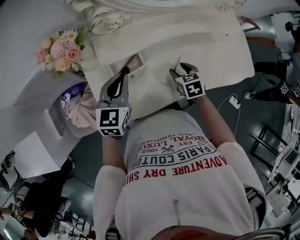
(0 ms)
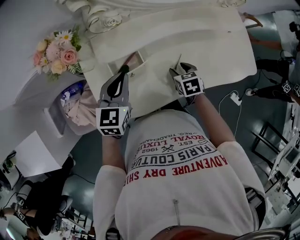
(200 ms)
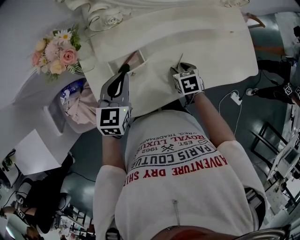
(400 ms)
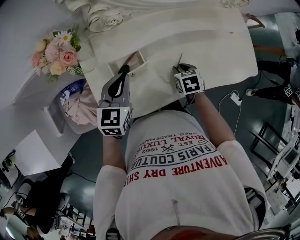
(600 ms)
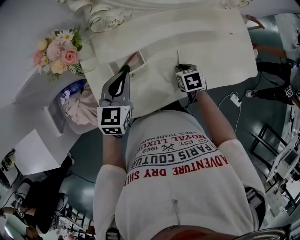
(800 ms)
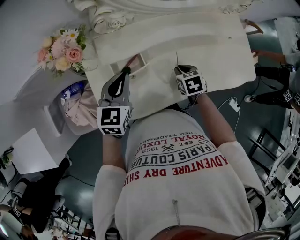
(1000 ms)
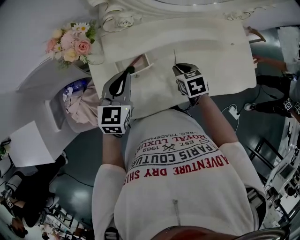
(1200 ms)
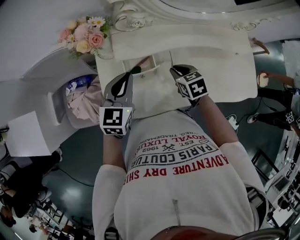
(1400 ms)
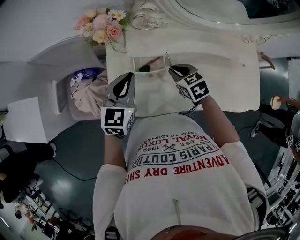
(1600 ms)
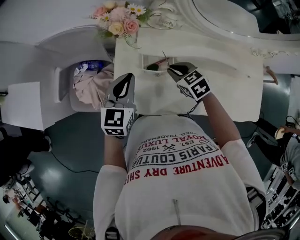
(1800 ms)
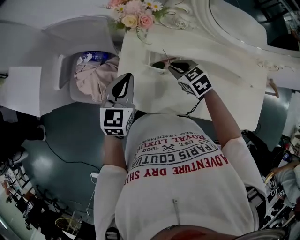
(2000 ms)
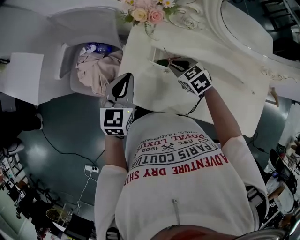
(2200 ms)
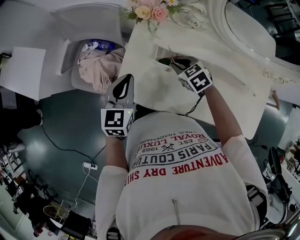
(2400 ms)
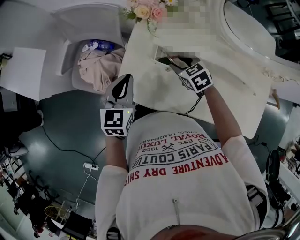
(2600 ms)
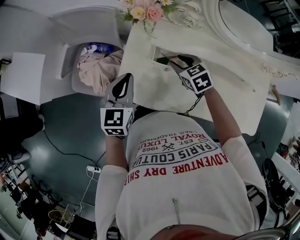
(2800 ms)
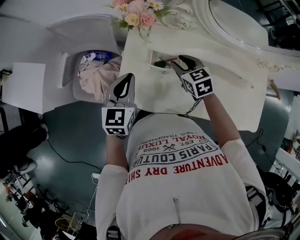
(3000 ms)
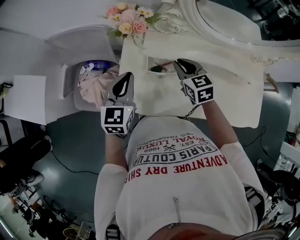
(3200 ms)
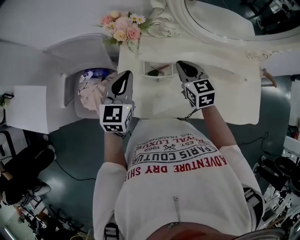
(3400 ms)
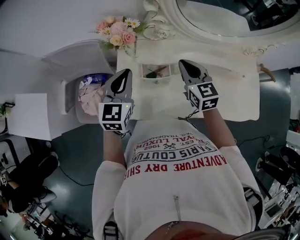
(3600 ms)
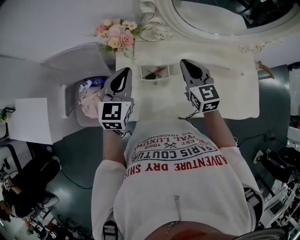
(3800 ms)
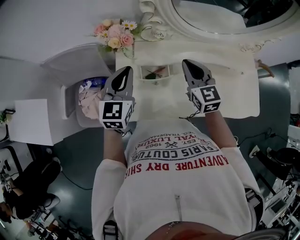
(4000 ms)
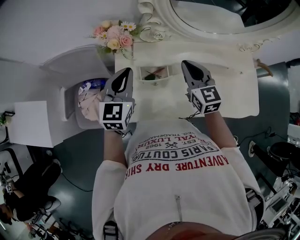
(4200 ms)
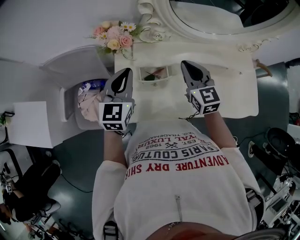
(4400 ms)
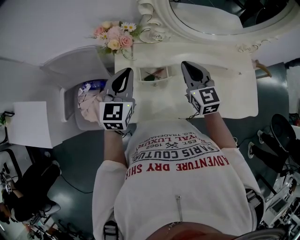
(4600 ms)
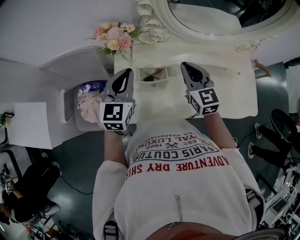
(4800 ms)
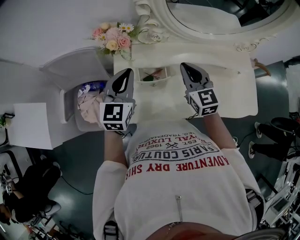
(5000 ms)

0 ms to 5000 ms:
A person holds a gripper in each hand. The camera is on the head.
0 ms to 1600 ms: The left gripper changes place by about 5 cm. Meanwhile the right gripper travels to the left and upward by approximately 15 cm, turns by some 30 degrees, and closes its fingers.
1600 ms to 3400 ms: The right gripper travels upward by some 10 cm, and turns by approximately 20 degrees.
3400 ms to 5000 ms: The right gripper heads upward, covering some 5 cm.

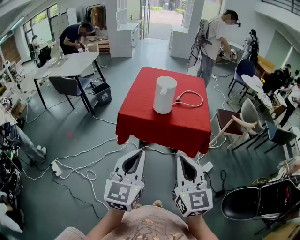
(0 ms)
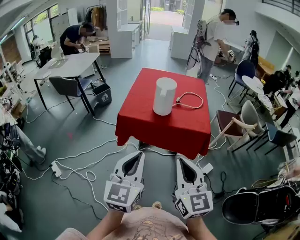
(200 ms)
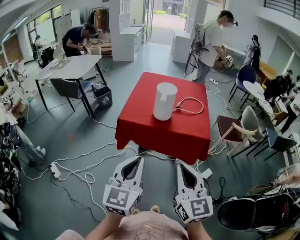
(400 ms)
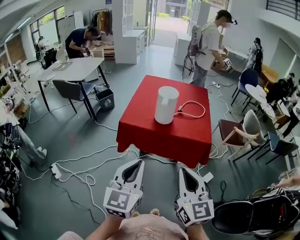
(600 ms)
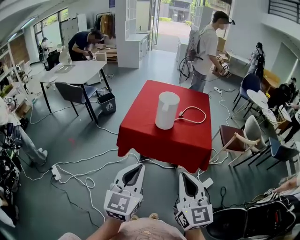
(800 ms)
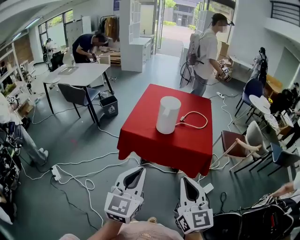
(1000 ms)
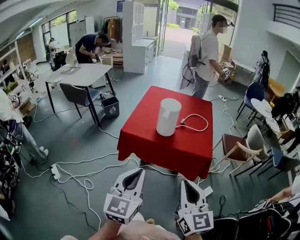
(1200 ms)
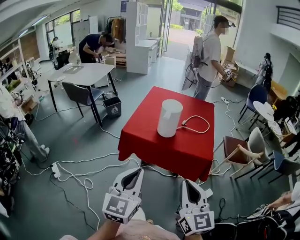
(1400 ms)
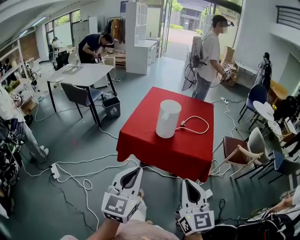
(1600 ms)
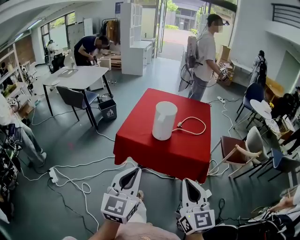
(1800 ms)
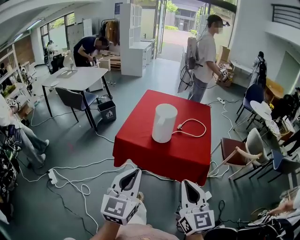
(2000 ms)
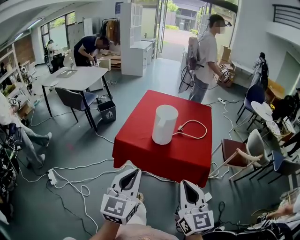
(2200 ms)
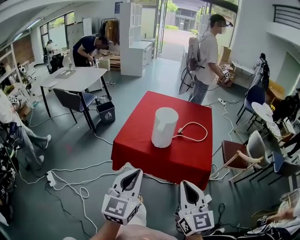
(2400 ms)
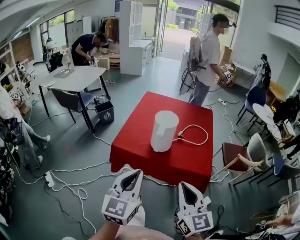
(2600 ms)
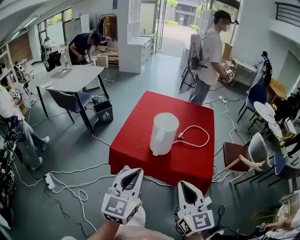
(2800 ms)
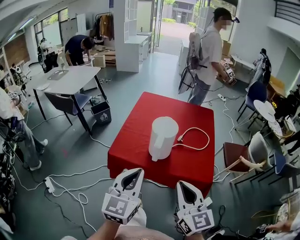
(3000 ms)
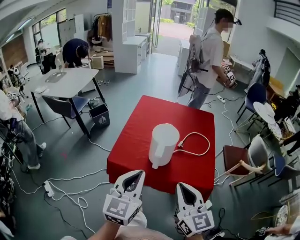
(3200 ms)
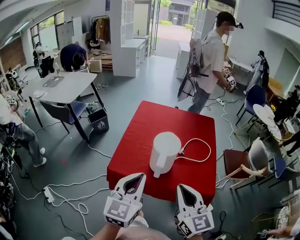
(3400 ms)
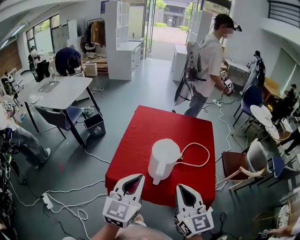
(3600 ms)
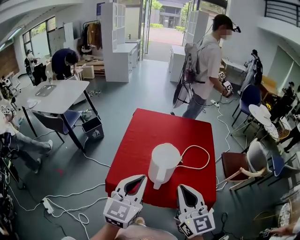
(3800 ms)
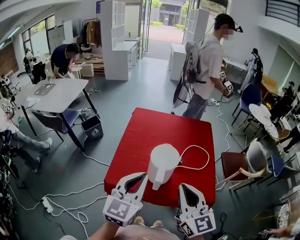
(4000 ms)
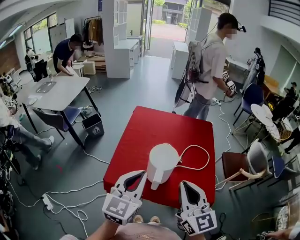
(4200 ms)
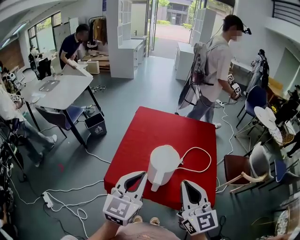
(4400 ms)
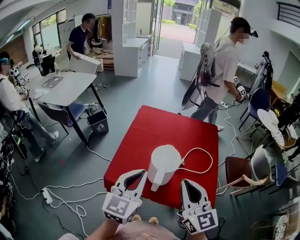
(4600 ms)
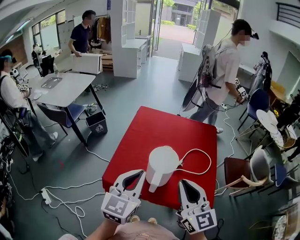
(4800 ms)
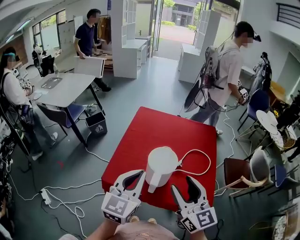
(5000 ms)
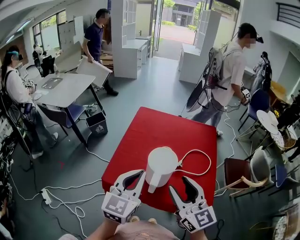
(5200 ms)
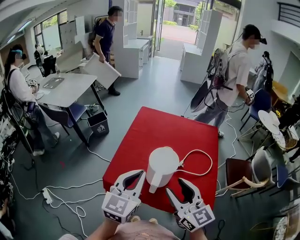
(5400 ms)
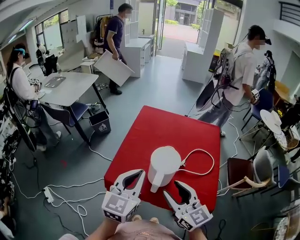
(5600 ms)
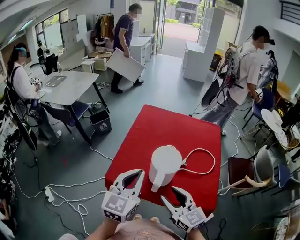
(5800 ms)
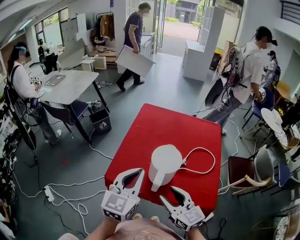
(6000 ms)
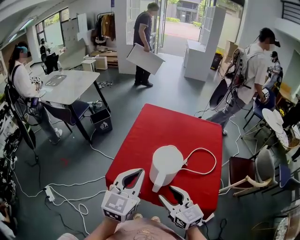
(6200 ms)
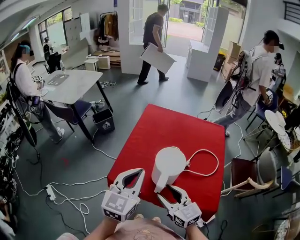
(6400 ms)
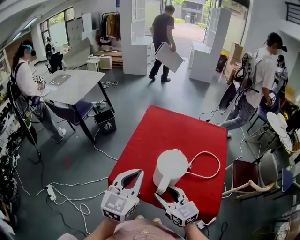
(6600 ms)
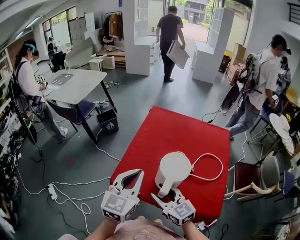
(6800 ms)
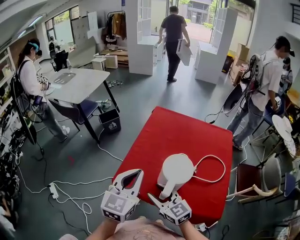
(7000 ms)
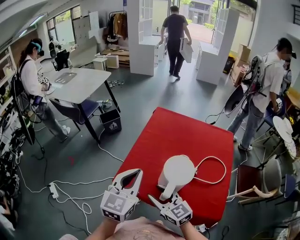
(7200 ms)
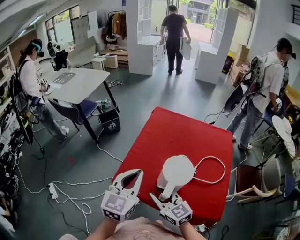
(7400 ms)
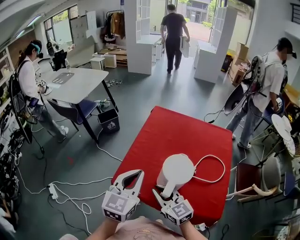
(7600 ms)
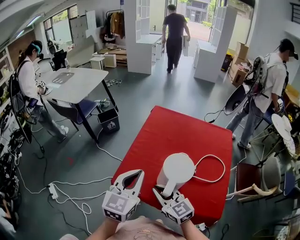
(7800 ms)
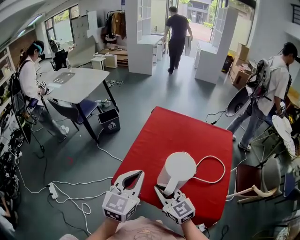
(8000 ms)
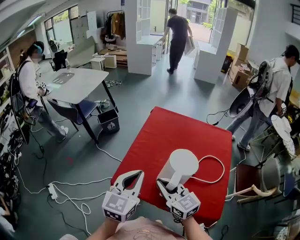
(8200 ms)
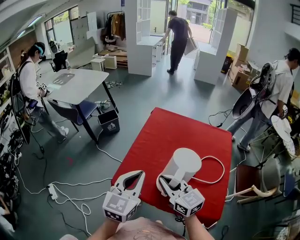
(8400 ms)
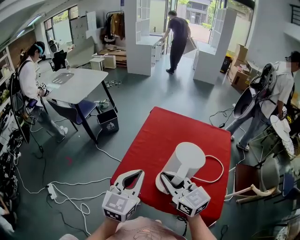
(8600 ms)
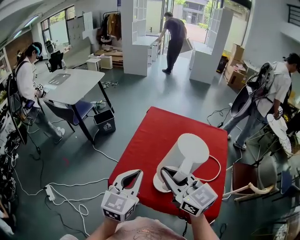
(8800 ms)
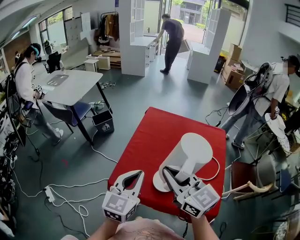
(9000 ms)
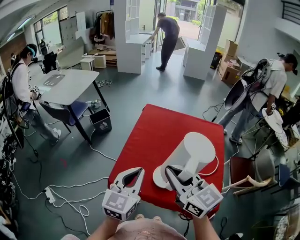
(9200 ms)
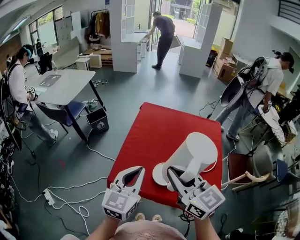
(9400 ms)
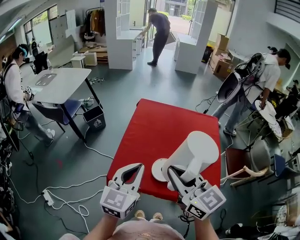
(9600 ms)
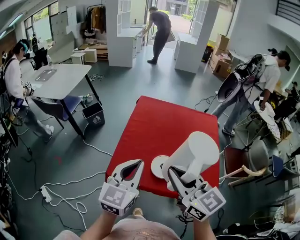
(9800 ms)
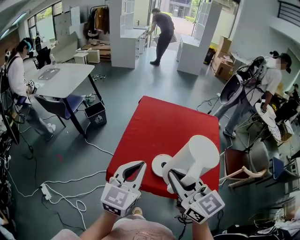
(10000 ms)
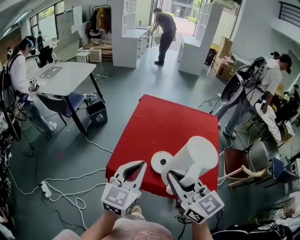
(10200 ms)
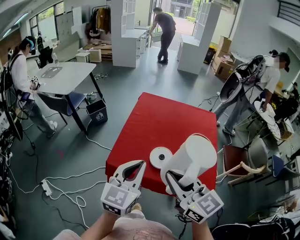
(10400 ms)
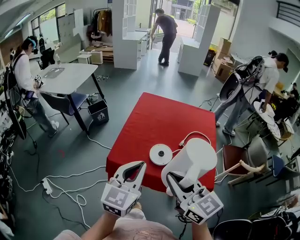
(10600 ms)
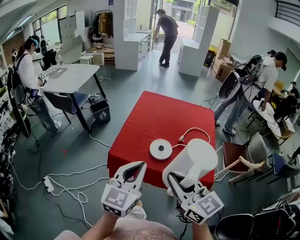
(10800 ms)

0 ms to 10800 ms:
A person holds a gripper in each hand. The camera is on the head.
0 ms to 1600 ms: The left gripper shifts by approximately 5 cm; the right gripper is displaced to the right by roughly 5 cm.
1600 ms to 3000 ms: Both grippers travel together forward, roughly 20 cm.
3000 ms to 4600 ms: Both grippers travel together forward, about 15 cm.
4600 ms to 6200 ms: The right gripper heads downward and to the left, covering roughly 15 cm, turns by approximately 30 degrees, and opens.
6200 ms to 7800 ms: The left gripper changes place by roughly 5 cm; the right gripper heads forward and to the left, covering some 10 cm, and closes.
7800 ms to 9200 ms: The right gripper heads upward, covering roughly 20 cm.
9200 ms to 10800 ms: Both grippers travel together backward, roughly 20 cm.

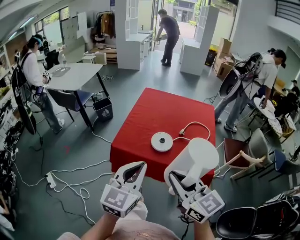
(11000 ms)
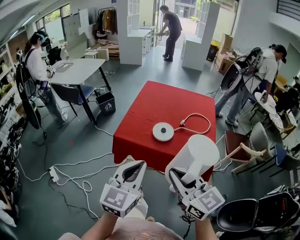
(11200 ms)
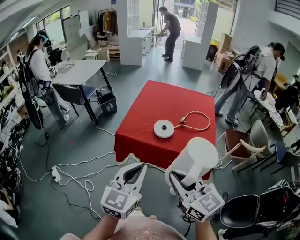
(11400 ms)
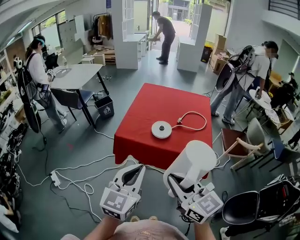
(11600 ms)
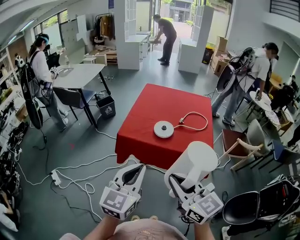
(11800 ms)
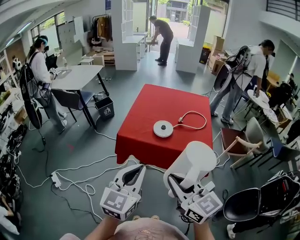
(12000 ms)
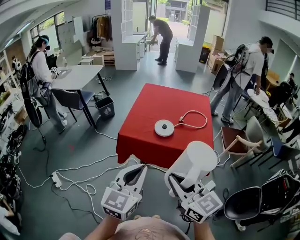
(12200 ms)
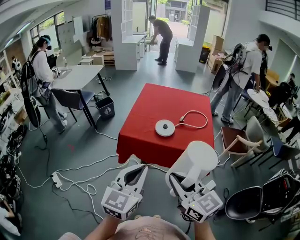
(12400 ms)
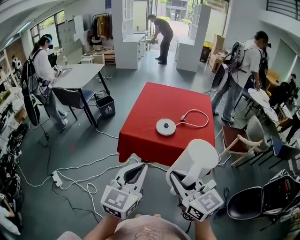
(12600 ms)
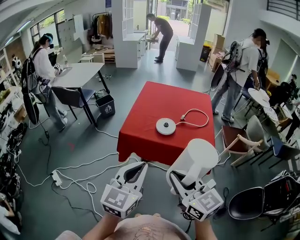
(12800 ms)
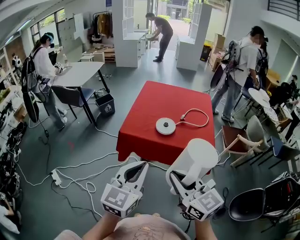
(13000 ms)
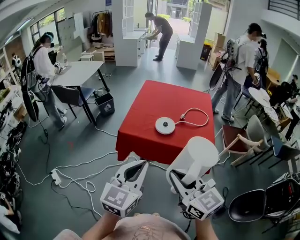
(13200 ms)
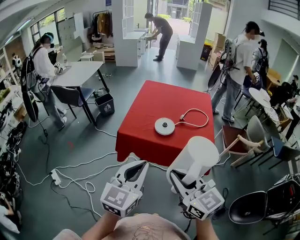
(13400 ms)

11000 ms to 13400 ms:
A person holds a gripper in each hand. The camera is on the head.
11000 ms to 12200 ms: The two grippers go roughly 15 cm backward.
12200 ms to 13400 ms: The grippers make only small movements.

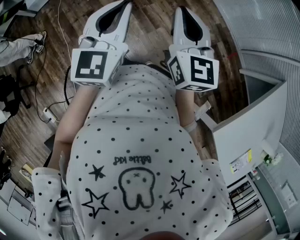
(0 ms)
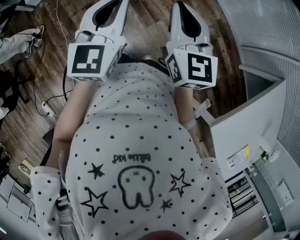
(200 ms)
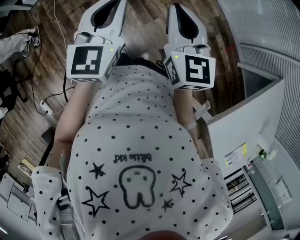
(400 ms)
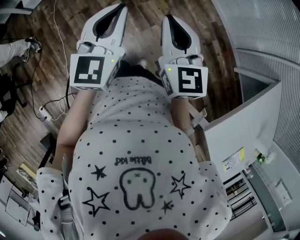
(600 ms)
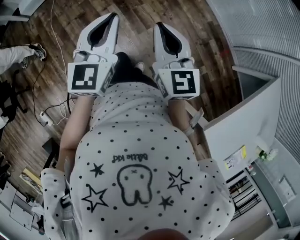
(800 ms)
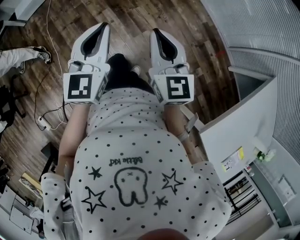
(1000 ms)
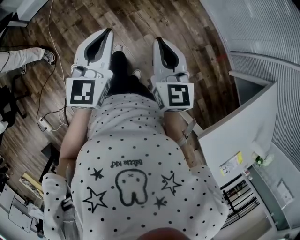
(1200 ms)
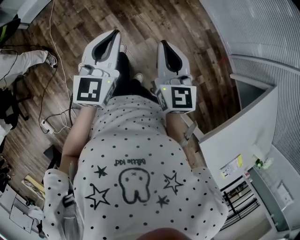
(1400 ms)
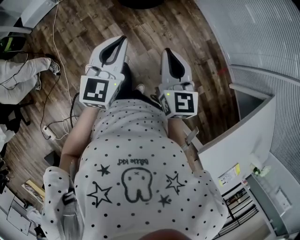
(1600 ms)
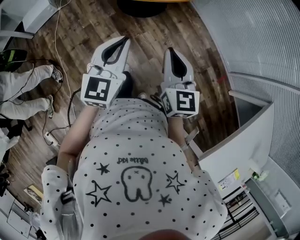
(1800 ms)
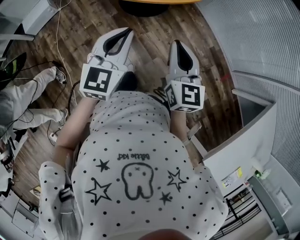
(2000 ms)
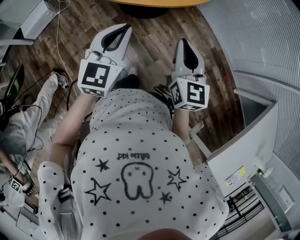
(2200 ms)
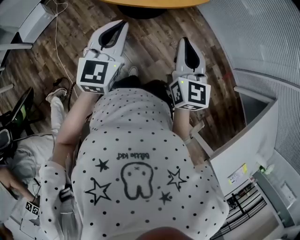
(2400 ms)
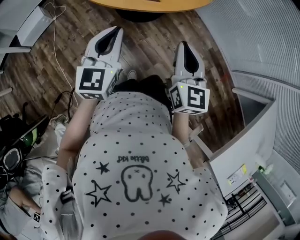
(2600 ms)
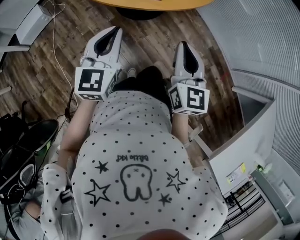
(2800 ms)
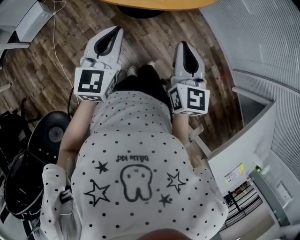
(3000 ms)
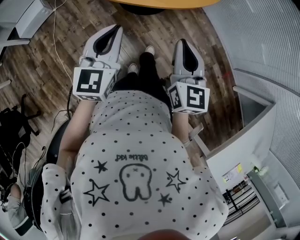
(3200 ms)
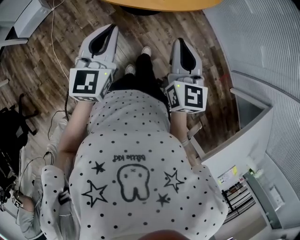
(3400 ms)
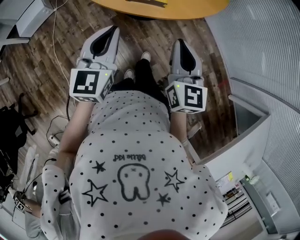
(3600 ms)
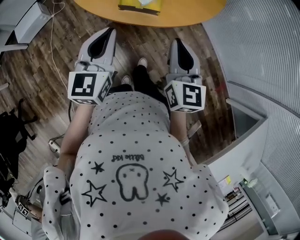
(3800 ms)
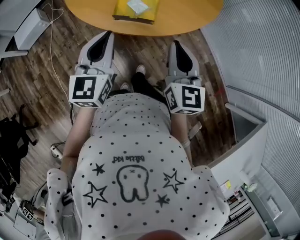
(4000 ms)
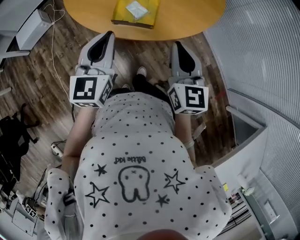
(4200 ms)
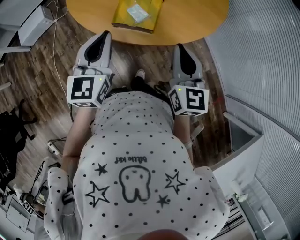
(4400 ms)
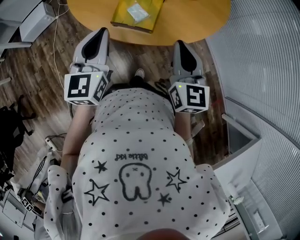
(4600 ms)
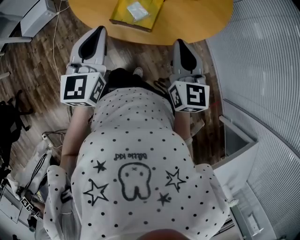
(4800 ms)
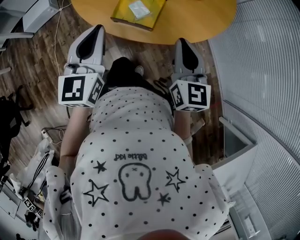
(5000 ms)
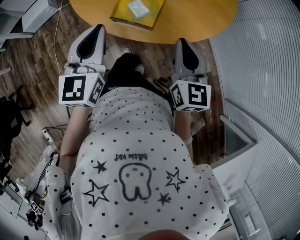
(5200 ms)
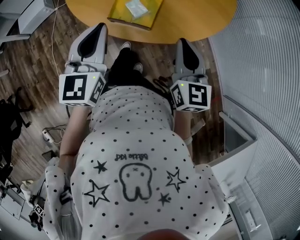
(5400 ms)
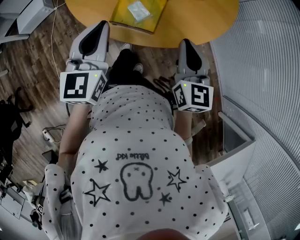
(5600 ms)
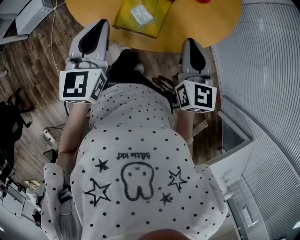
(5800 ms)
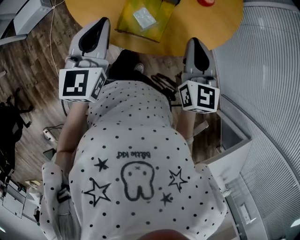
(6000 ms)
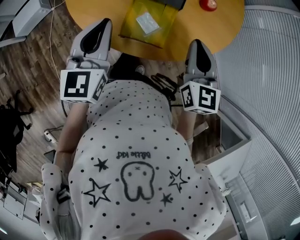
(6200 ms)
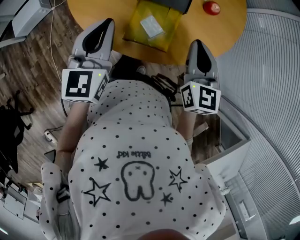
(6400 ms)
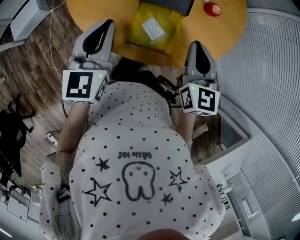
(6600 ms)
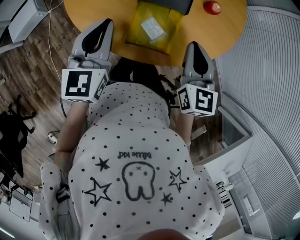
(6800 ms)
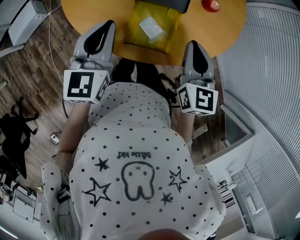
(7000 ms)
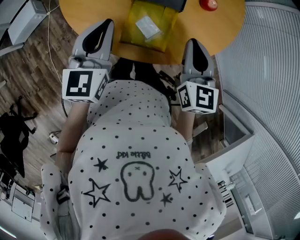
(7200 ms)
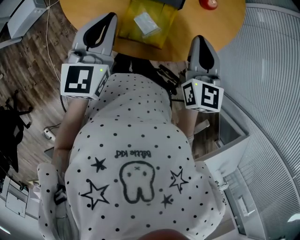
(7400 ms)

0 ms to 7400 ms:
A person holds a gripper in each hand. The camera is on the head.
0 ms to 1400 ms: The left gripper heads forward, covering some 5 cm. The right gripper moves roughly 5 cm.
1400 ms to 3000 ms: The grippers both shift forward and to the left by about 25 cm.
3000 ms to 4400 ms: The grippers both shift forward by about 15 cm.
4400 ms to 6000 ms: Both grippers travel together forward, roughly 15 cm.
6000 ms to 7400 ms: Both grippers travel together forward, approximately 5 cm.
